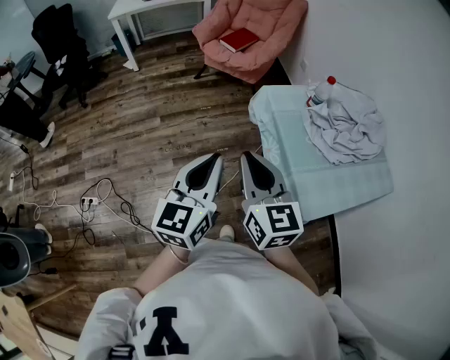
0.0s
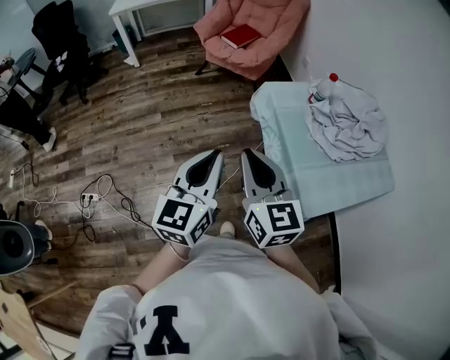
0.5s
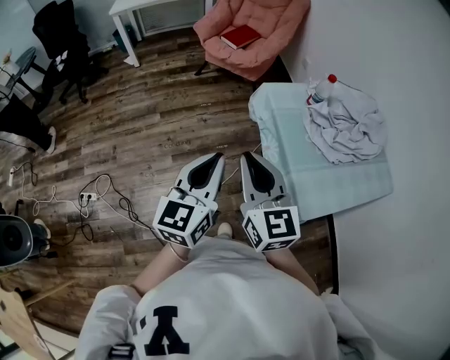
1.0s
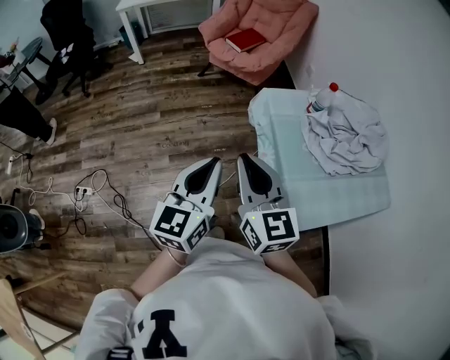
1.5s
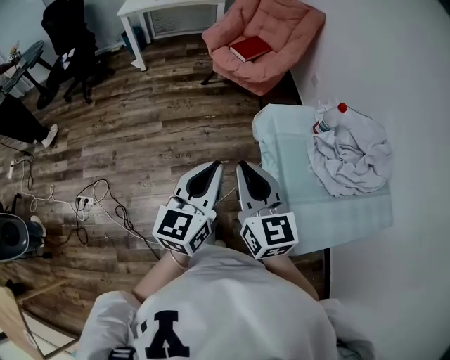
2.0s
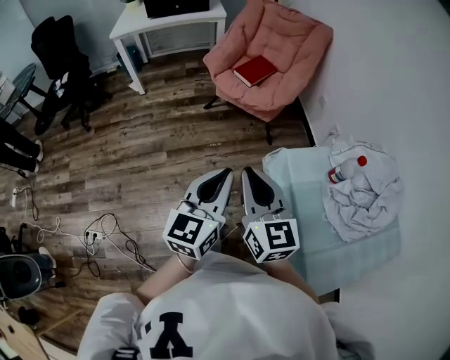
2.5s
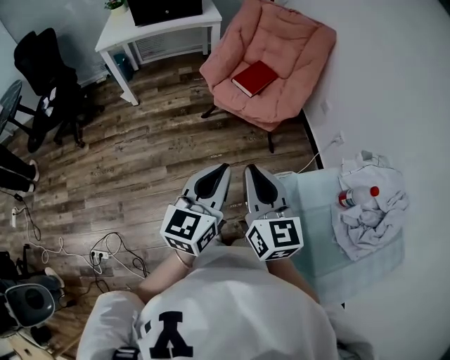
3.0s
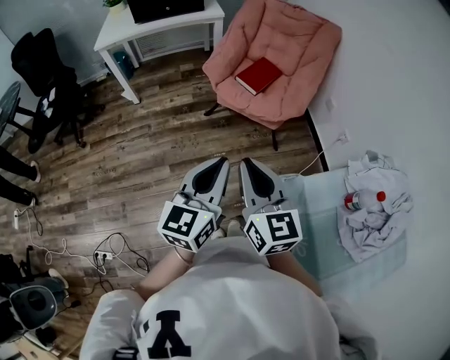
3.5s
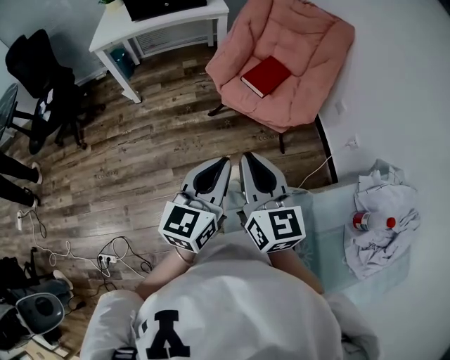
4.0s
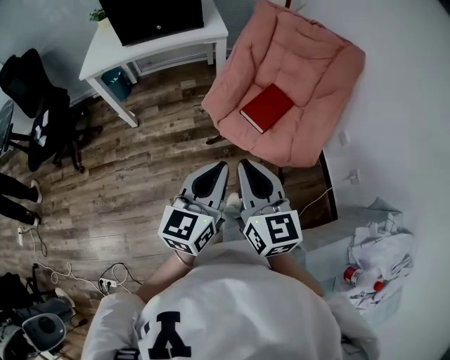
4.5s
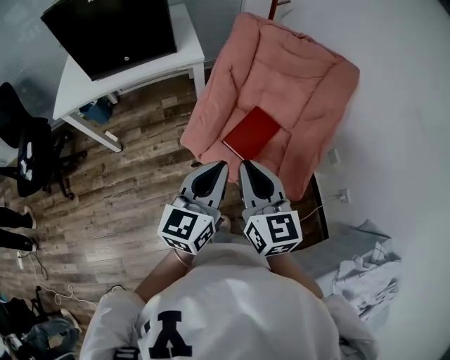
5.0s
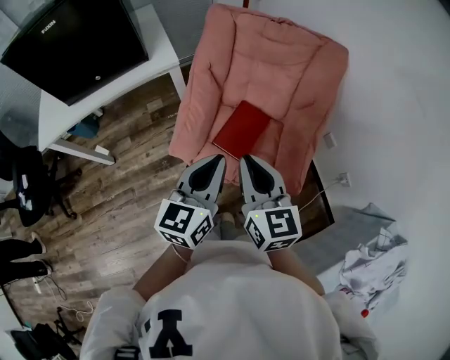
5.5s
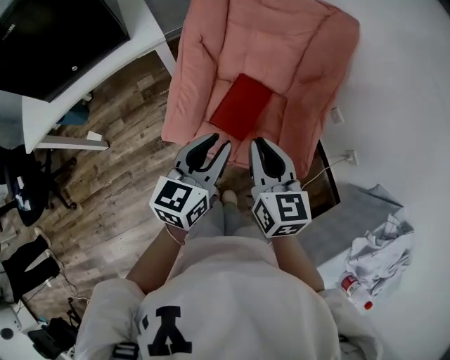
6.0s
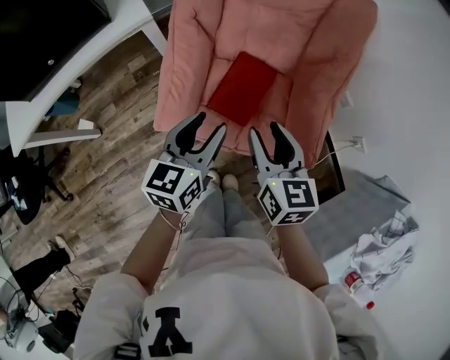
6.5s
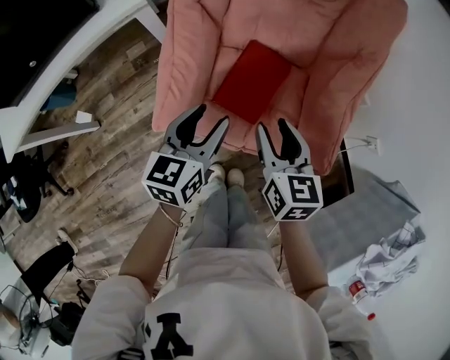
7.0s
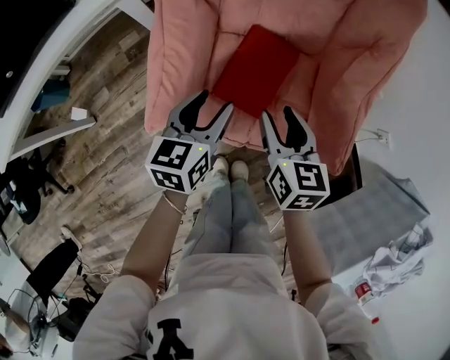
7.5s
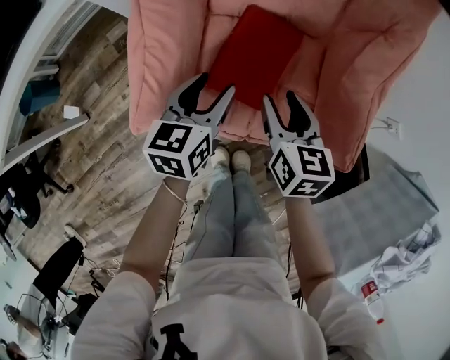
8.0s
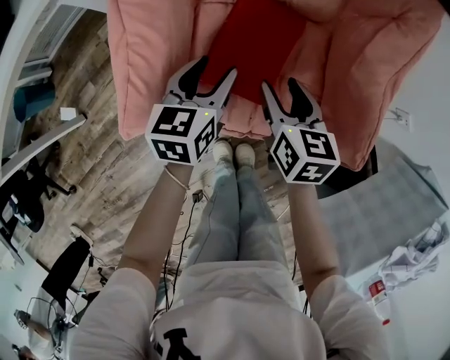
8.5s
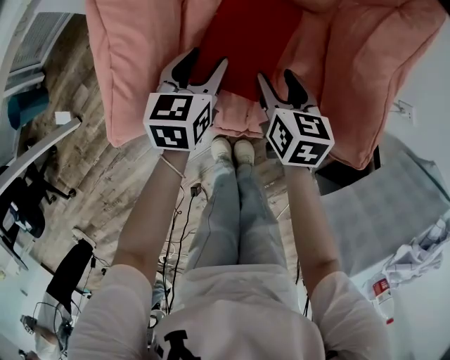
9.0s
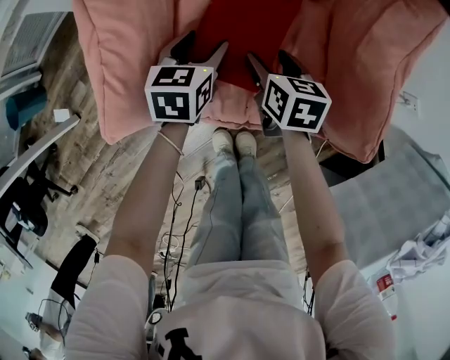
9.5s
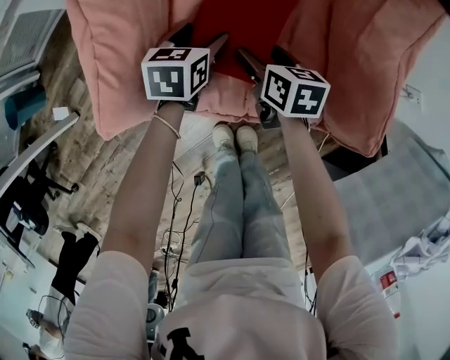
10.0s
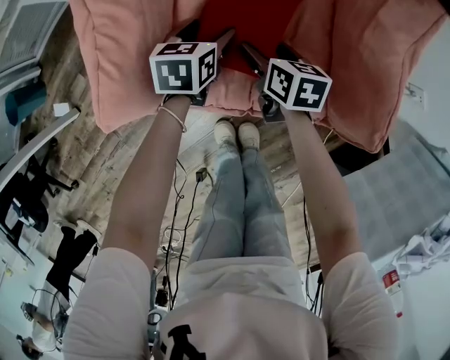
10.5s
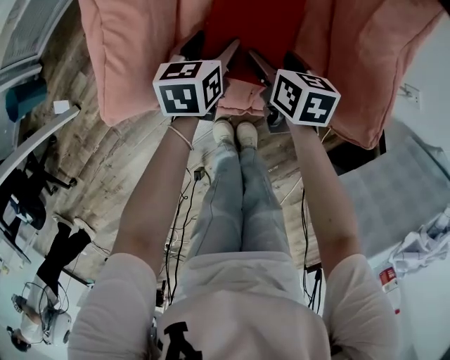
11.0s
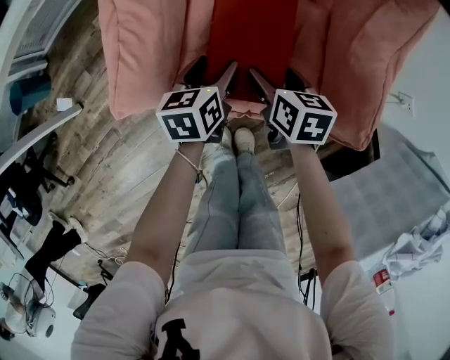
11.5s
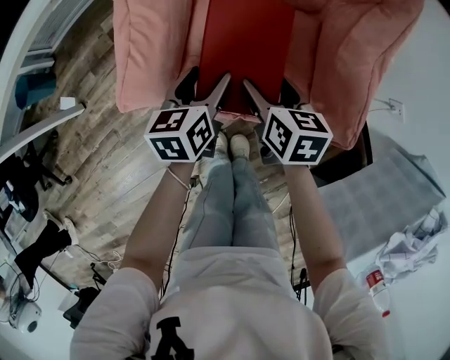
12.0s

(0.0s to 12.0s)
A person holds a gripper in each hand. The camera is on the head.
0.0s - 2.0s: The grippers both shift forward by about 10 cm.
2.0s - 4.0s: The pair of grippers is taken forward, about 40 cm.
4.0s - 6.0s: The pair of grippers is taken forward, roughly 50 cm. The left gripper turns by some 20 degrees. Meanwhile the right gripper turns by approximately 20 degrees.
6.0s - 8.0s: The left gripper travels downward and forward by roughly 30 cm, and opens its fingers, while the right gripper is displaced downward by roughly 25 cm, changes its angle by roughly 20 degrees, and opens its fingers.
8.0s - 10.0s: The grippers both shift downward by about 15 cm.
10.0s - 12.0s: Both grippers travel together upward and backward, roughly 15 cm. The left gripper turns by roughly 20 degrees.

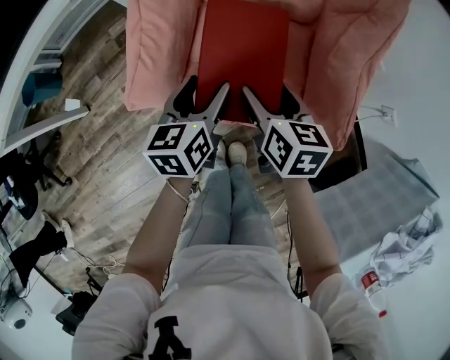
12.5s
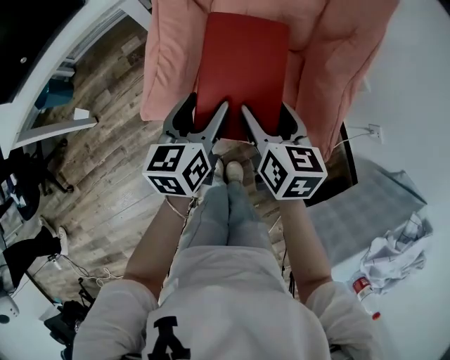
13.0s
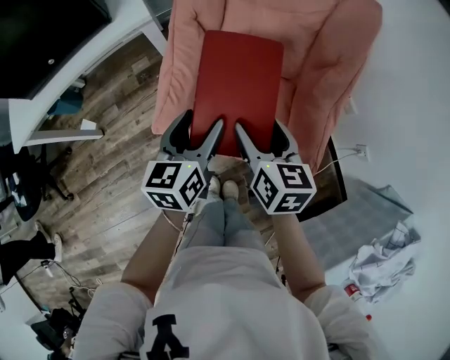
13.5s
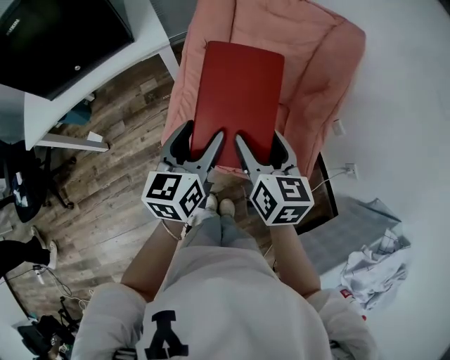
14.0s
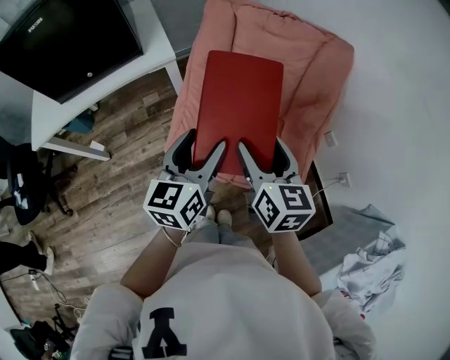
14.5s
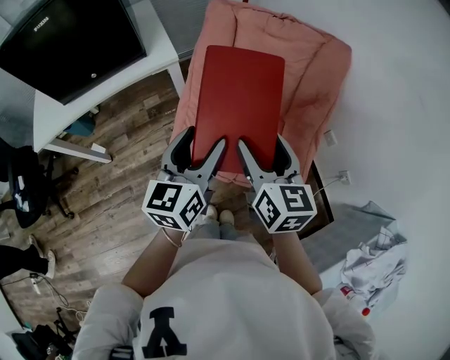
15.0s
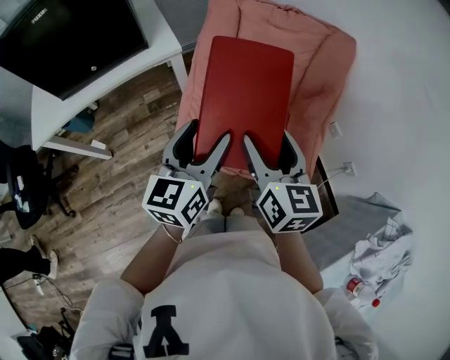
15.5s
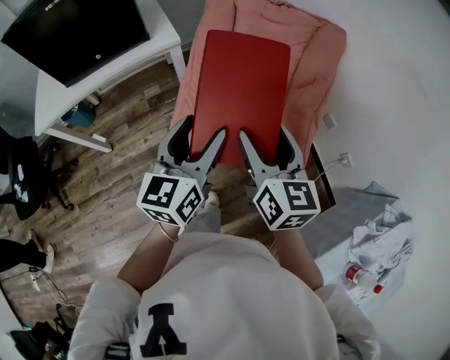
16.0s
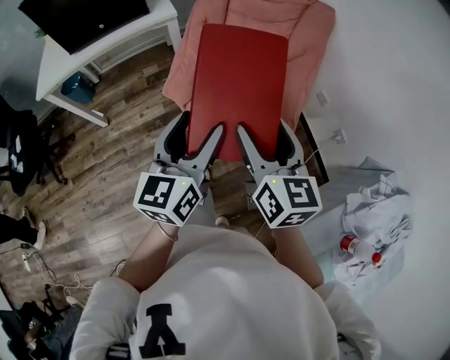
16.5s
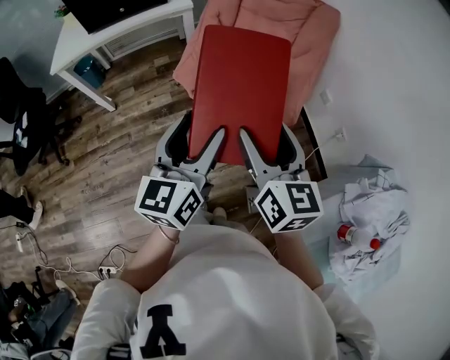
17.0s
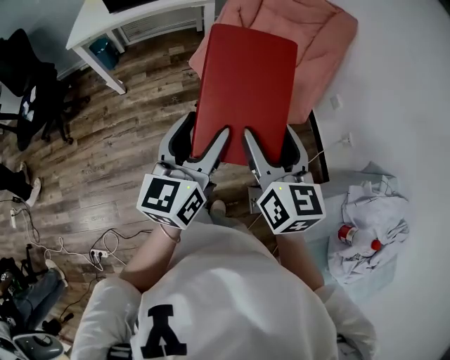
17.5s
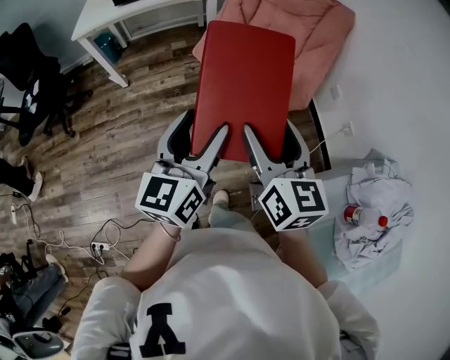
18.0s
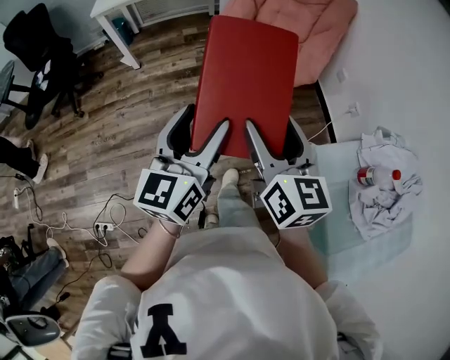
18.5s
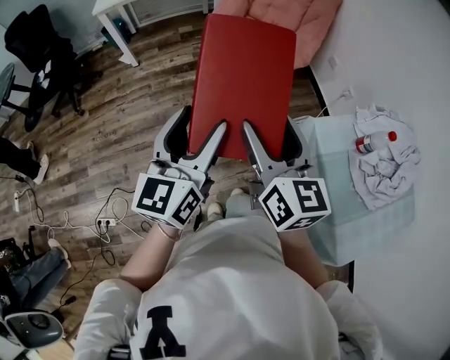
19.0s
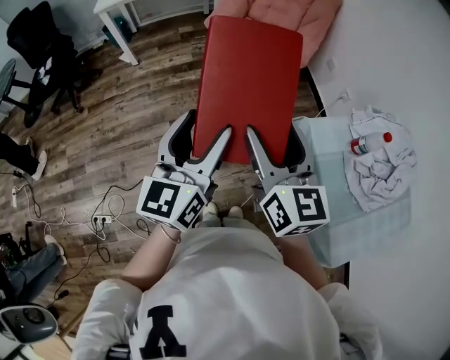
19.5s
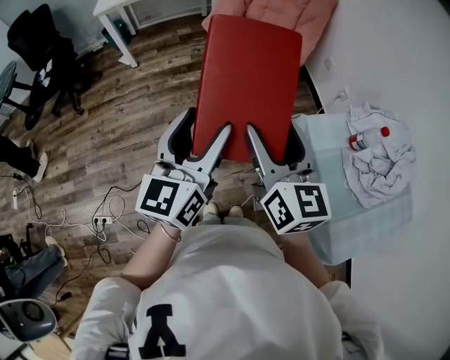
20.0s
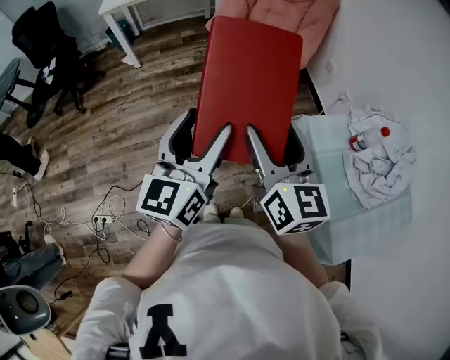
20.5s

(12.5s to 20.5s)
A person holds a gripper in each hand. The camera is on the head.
12.5s - 14.5s: Both grippers travel together upward, some 30 cm. The right gripper rotates about 20 degrees; the left gripper rotates roughly 20 degrees.
14.5s - 16.5s: Both grippers travel together backward, about 25 cm.
16.5s - 18.5s: The two grippers go roughly 35 cm backward.
18.5s - 20.5s: The grippers both shift backward by approximately 15 cm.

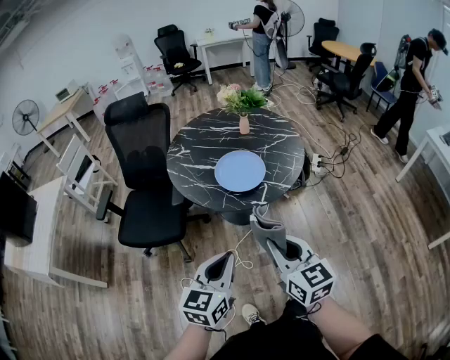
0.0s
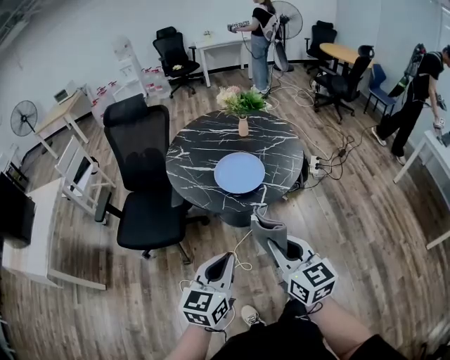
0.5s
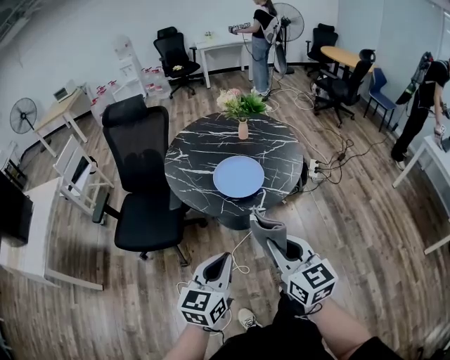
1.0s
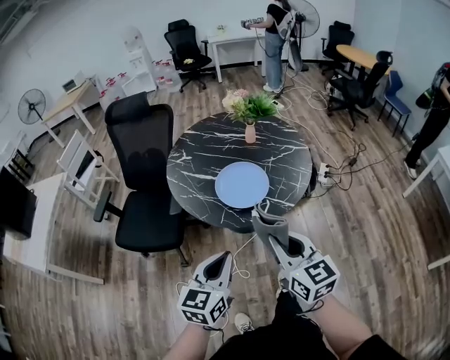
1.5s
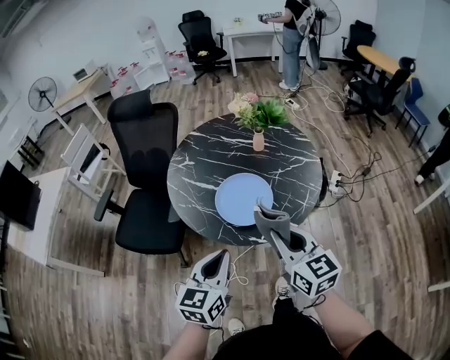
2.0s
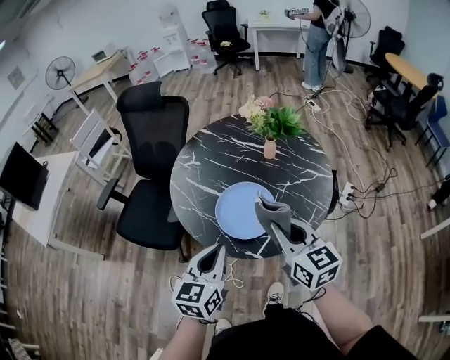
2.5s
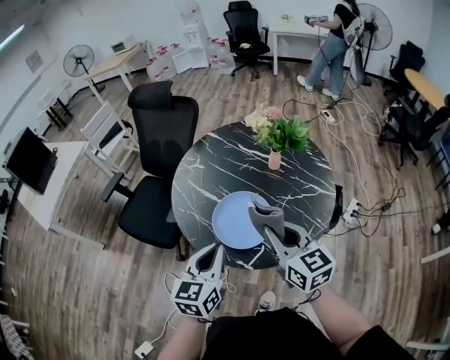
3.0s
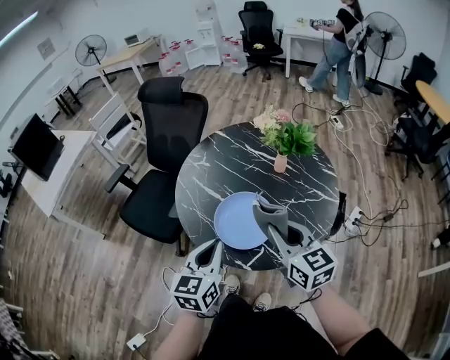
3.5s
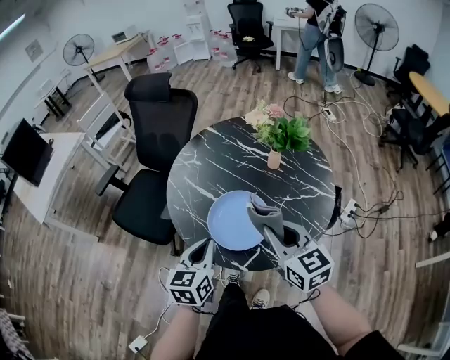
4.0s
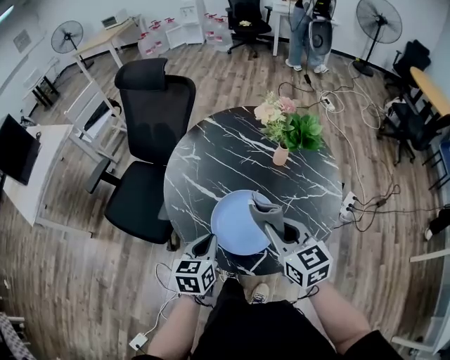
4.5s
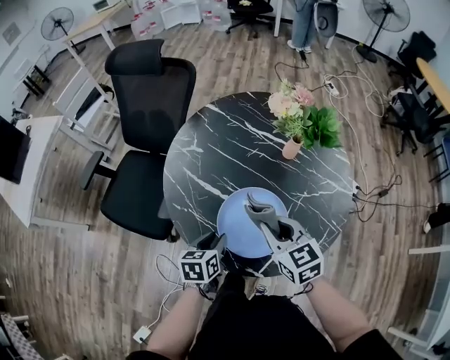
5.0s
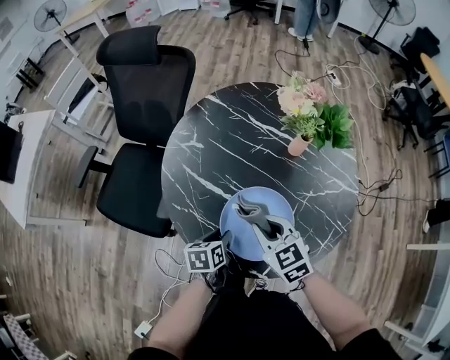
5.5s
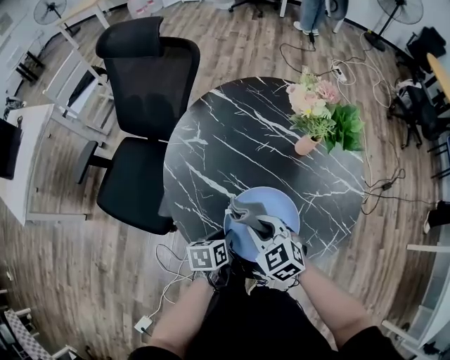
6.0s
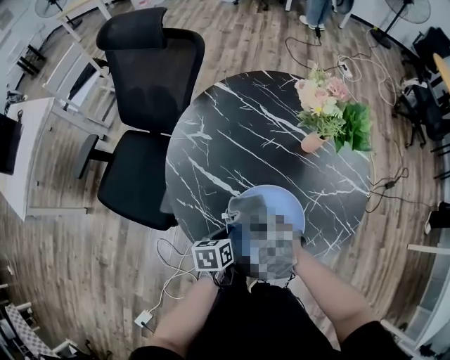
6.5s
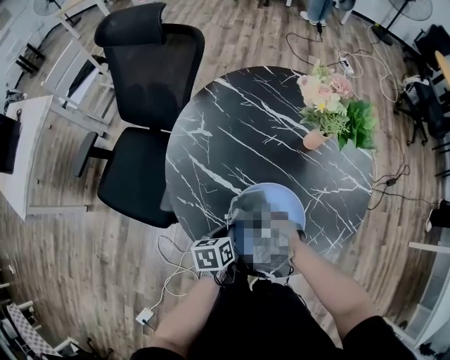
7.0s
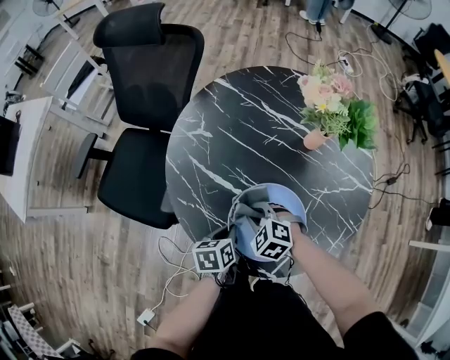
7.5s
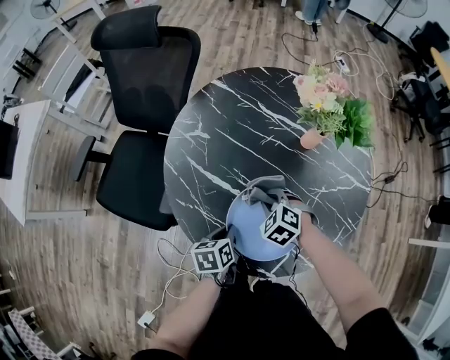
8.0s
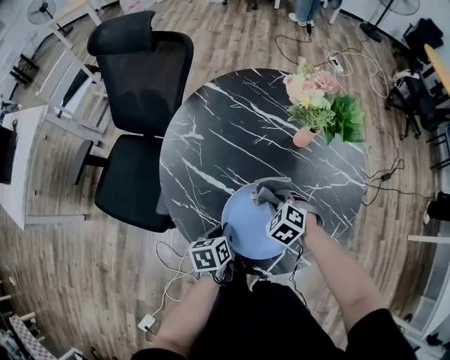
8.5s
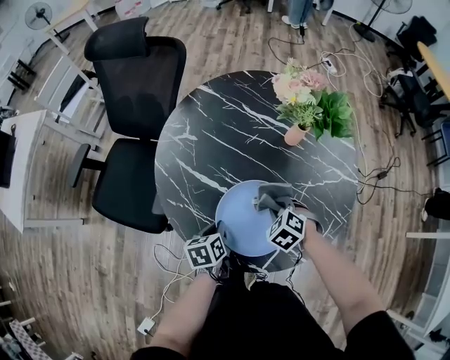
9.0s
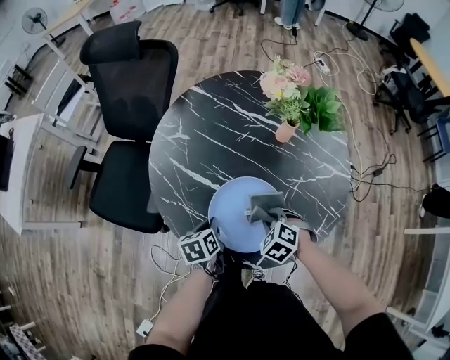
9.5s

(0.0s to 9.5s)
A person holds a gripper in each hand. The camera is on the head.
0.0s - 2.0s: Both grippers travel together forward, about 20 cm.
2.0s - 4.0s: The right gripper heads forward and to the right, covering approximately 15 cm. The left gripper is displaced forward by approximately 15 cm, and changes its angle by some 20 degrees.
4.0s - 5.5s: The right gripper is displaced downward, forward and to the left by about 20 cm, and turns by some 20 degrees. Meanwhile the left gripper travels downward and forward by approximately 25 cm, rotates some 40 degrees, and opens its fingers.
5.5s - 7.5s: The left gripper closes; the right gripper travels downward by some 15 cm, and swivels approximately 40 degrees.
7.5s - 9.5s: The right gripper moves to the right and backward, some 15 cm.
